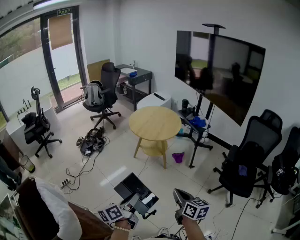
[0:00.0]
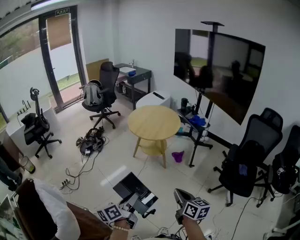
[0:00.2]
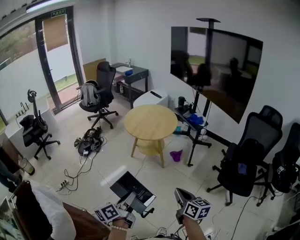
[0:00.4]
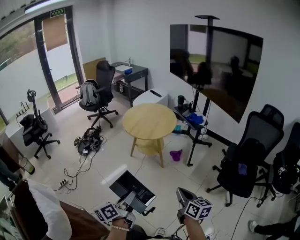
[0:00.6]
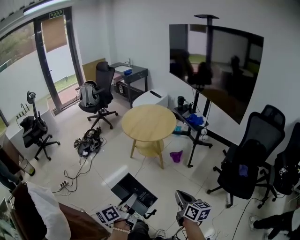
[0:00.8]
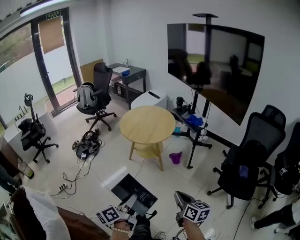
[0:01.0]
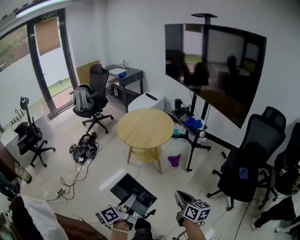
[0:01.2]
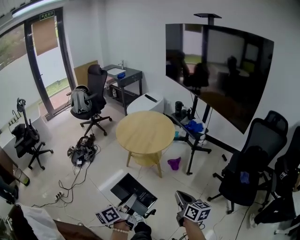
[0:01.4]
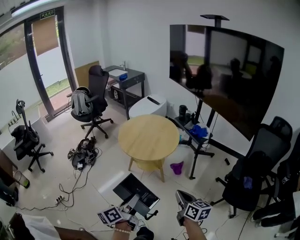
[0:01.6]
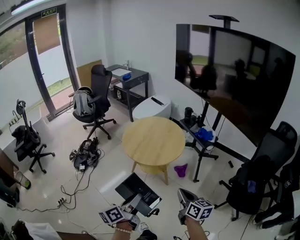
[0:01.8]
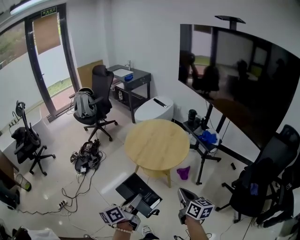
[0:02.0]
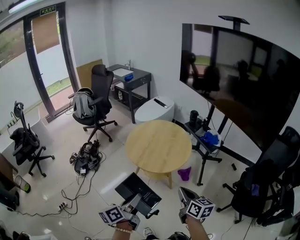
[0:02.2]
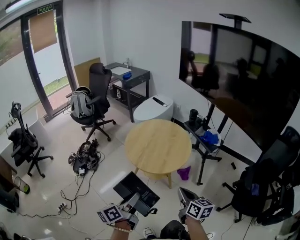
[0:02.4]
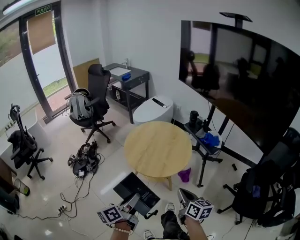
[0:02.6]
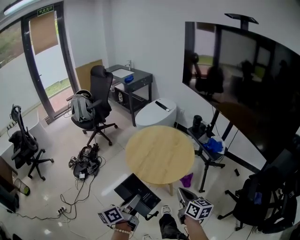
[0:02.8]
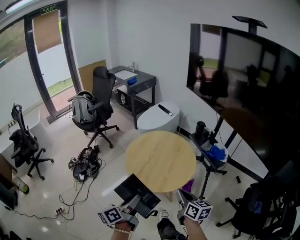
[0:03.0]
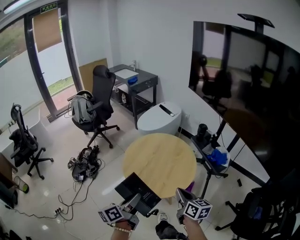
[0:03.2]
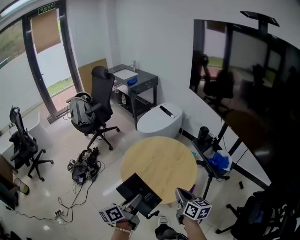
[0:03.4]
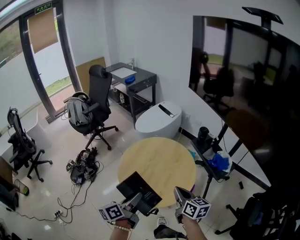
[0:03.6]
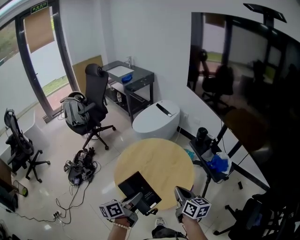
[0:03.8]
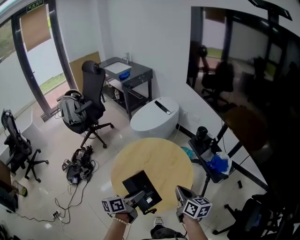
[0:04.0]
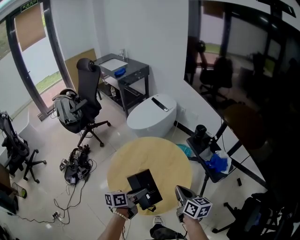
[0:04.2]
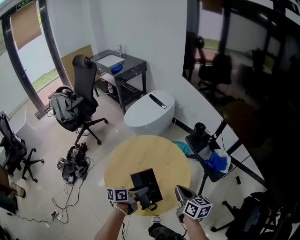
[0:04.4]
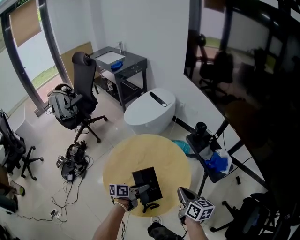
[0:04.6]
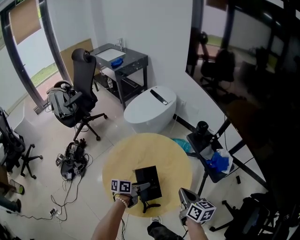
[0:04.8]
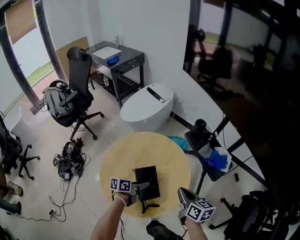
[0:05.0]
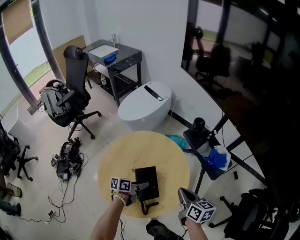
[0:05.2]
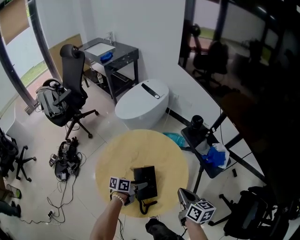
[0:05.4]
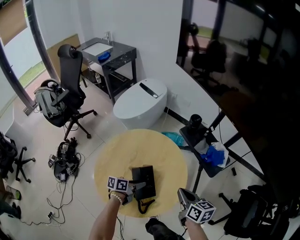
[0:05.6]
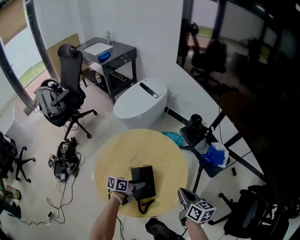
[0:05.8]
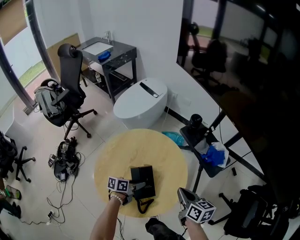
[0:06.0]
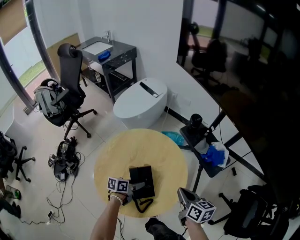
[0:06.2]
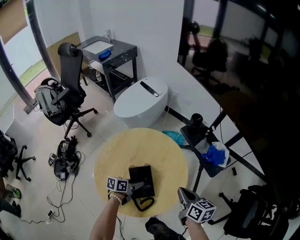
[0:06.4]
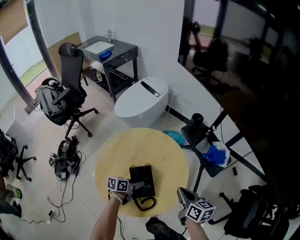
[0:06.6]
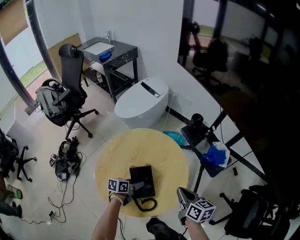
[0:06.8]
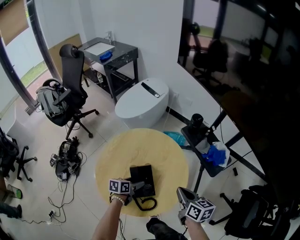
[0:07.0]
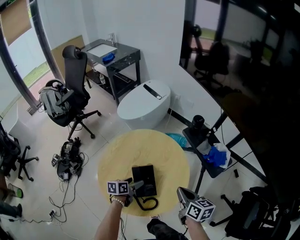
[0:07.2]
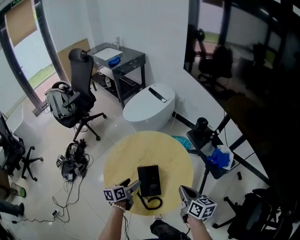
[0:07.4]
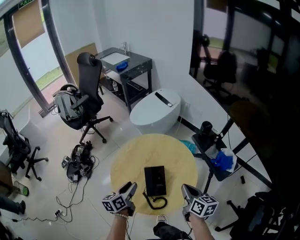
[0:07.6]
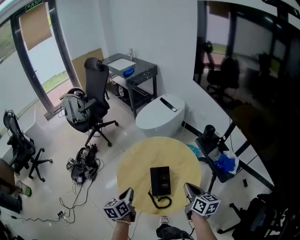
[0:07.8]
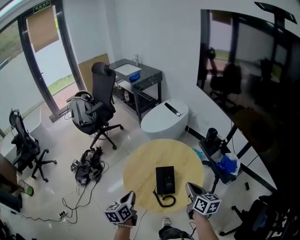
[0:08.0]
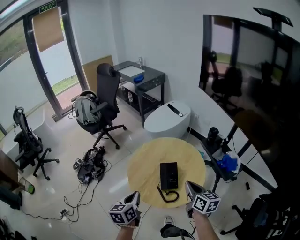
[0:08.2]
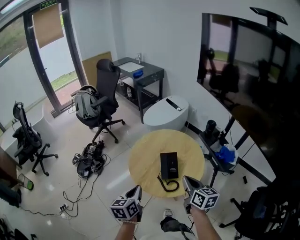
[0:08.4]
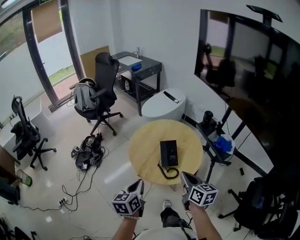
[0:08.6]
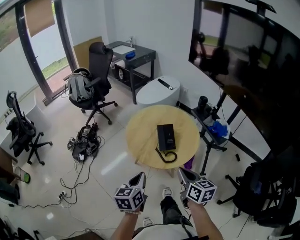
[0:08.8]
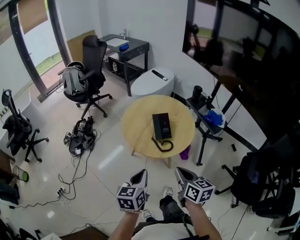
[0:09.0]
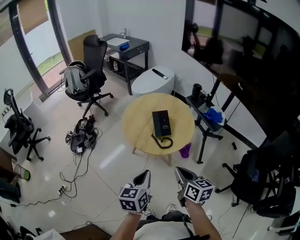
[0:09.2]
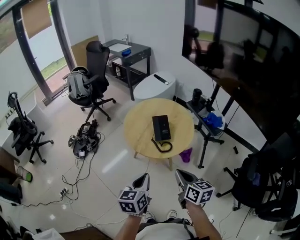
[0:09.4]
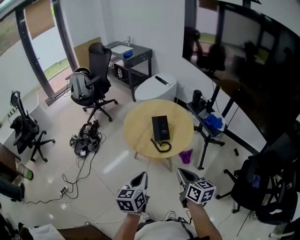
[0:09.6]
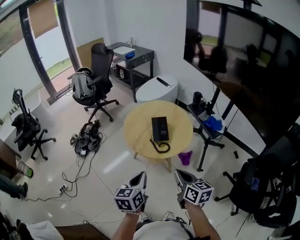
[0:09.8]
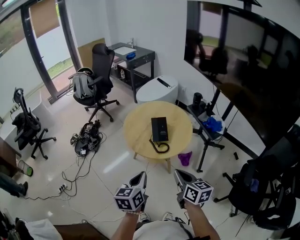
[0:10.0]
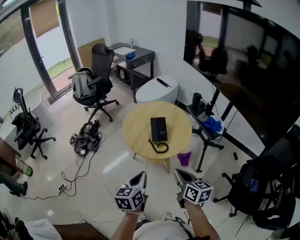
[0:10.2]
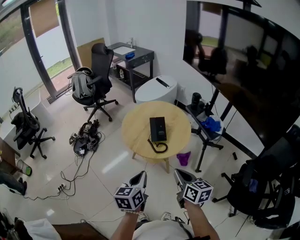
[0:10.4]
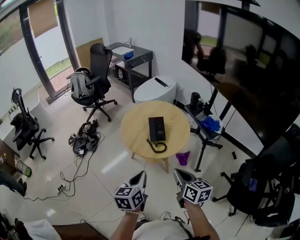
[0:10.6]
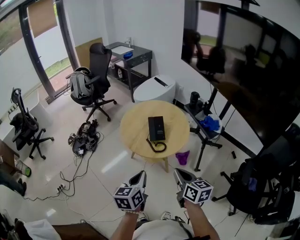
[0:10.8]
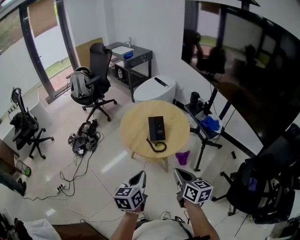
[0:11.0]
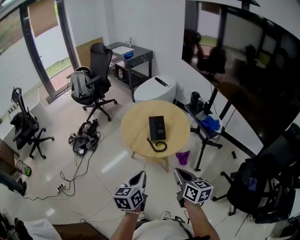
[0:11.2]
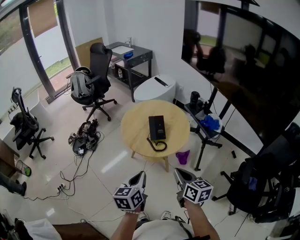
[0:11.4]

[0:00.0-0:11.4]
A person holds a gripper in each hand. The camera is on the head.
0:00.0 to 0:01.4: The left gripper shifts approximately 15 cm forward. The right gripper shifts approximately 20 cm forward and to the right.
0:01.4 to 0:02.8: Both grippers move forward, some 25 cm.
0:02.8 to 0:04.2: The two grippers go about 25 cm forward. The left gripper turns by approximately 20 degrees.
0:04.2 to 0:05.6: The right gripper changes place by some 5 cm. The left gripper travels downward and forward by some 15 cm, and swivels some 20 degrees.
0:05.6 to 0:07.2: The left gripper travels to the left by some 5 cm, and opens.
0:07.2 to 0:08.6: The left gripper goes about 35 cm backward, upward and to the left, swivels some 30 degrees, and closes. Meanwhile the right gripper shifts some 20 cm backward, to the left and upward.
0:08.6 to 0:10.0: The left gripper is displaced backward and to the right by about 15 cm. Meanwhile the right gripper shifts about 15 cm backward.
0:10.0 to 0:11.4: The grippers make only small movements.

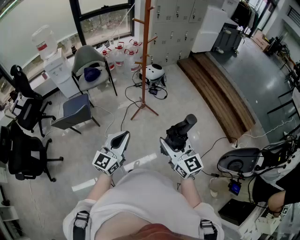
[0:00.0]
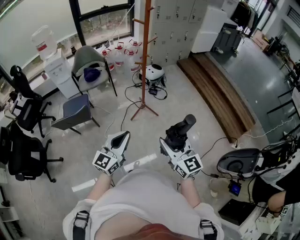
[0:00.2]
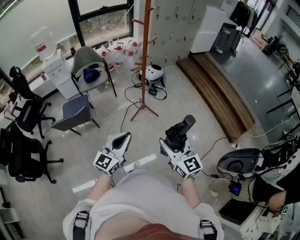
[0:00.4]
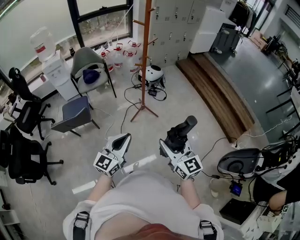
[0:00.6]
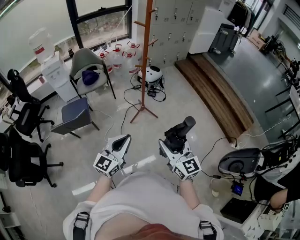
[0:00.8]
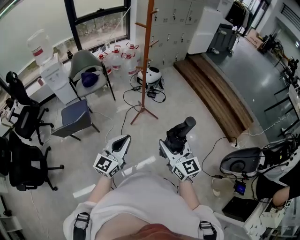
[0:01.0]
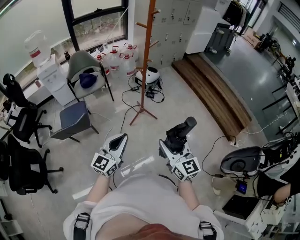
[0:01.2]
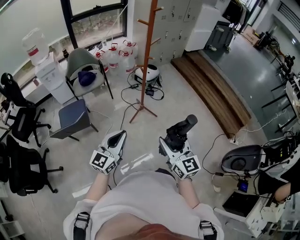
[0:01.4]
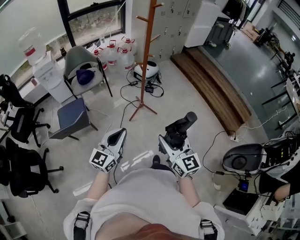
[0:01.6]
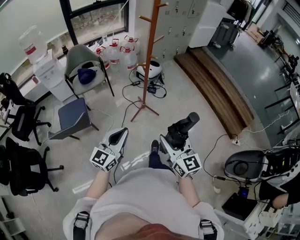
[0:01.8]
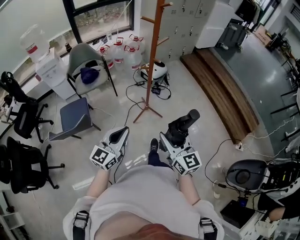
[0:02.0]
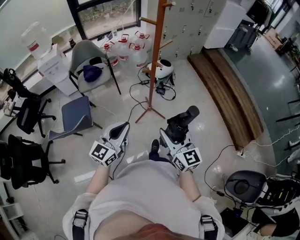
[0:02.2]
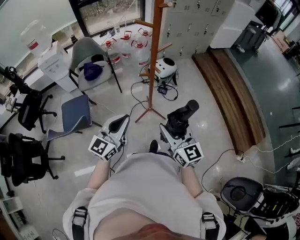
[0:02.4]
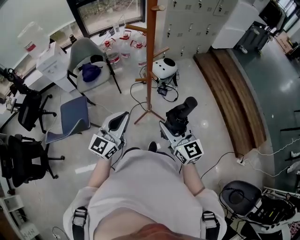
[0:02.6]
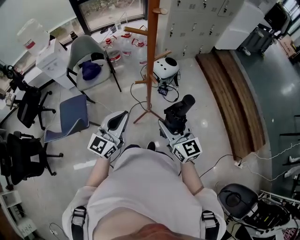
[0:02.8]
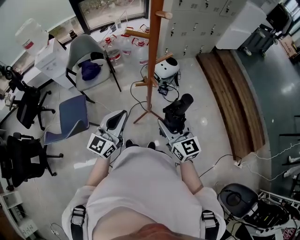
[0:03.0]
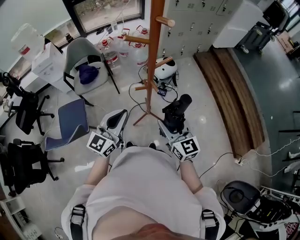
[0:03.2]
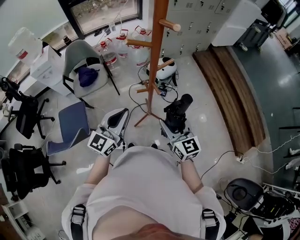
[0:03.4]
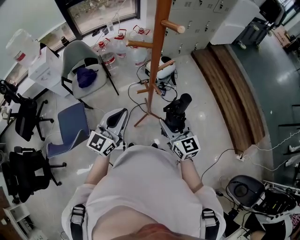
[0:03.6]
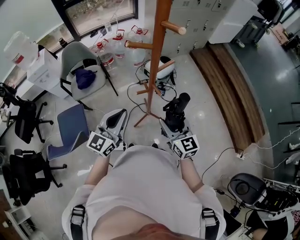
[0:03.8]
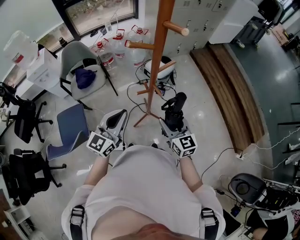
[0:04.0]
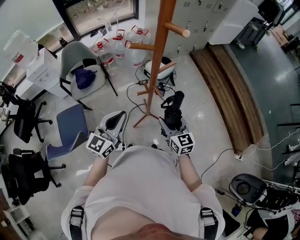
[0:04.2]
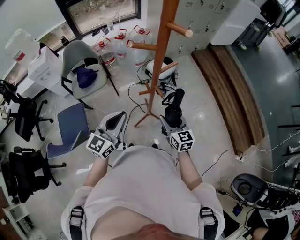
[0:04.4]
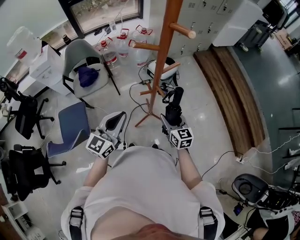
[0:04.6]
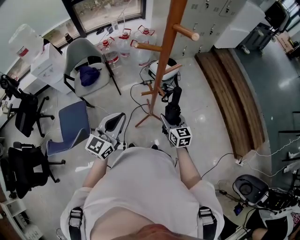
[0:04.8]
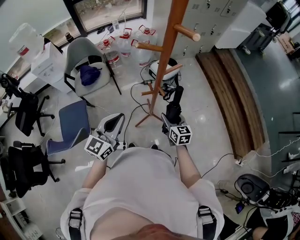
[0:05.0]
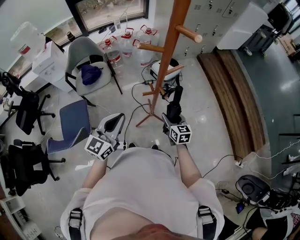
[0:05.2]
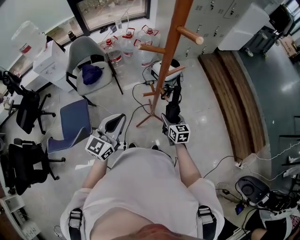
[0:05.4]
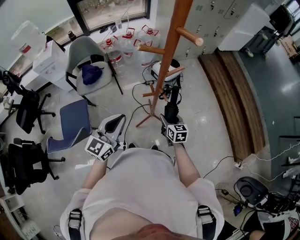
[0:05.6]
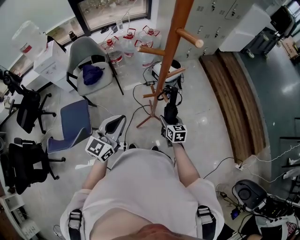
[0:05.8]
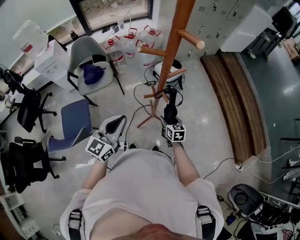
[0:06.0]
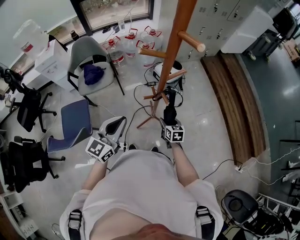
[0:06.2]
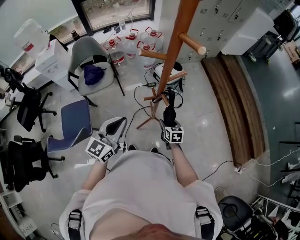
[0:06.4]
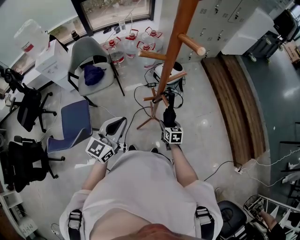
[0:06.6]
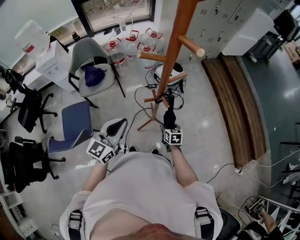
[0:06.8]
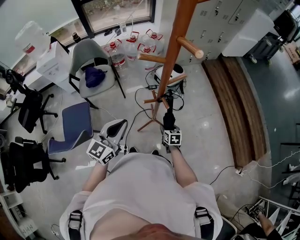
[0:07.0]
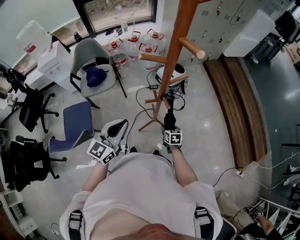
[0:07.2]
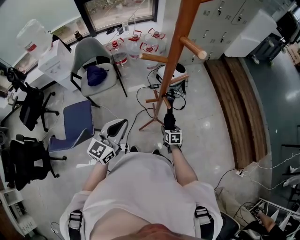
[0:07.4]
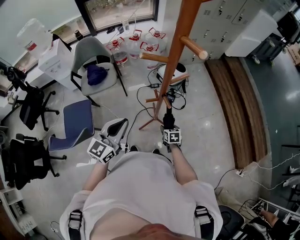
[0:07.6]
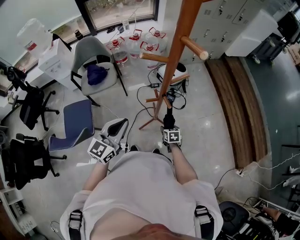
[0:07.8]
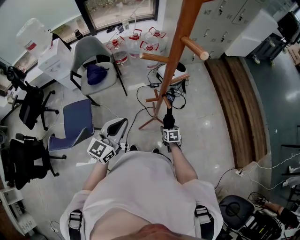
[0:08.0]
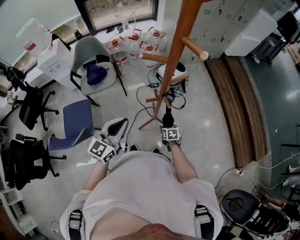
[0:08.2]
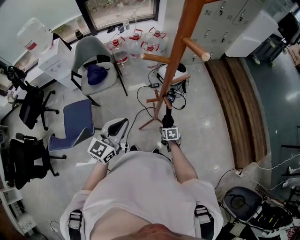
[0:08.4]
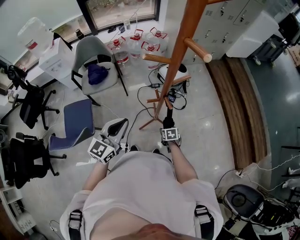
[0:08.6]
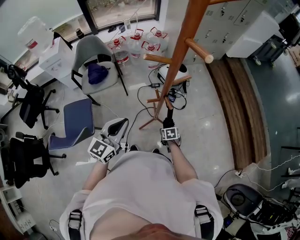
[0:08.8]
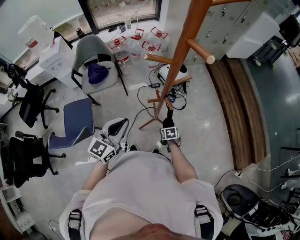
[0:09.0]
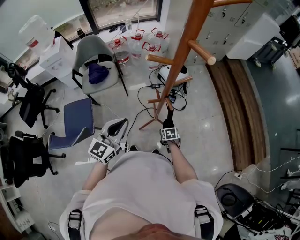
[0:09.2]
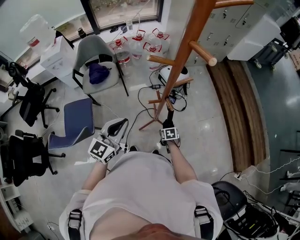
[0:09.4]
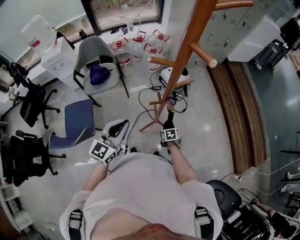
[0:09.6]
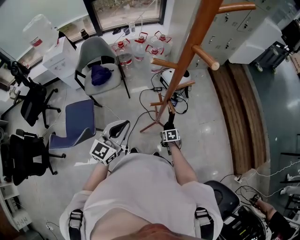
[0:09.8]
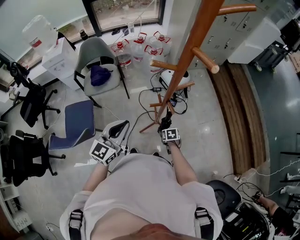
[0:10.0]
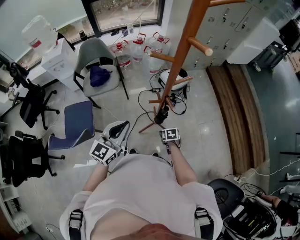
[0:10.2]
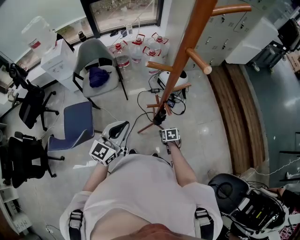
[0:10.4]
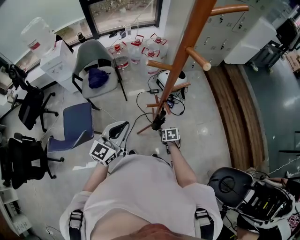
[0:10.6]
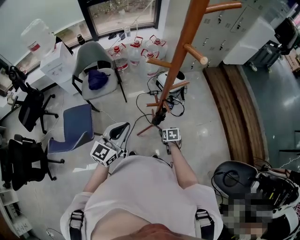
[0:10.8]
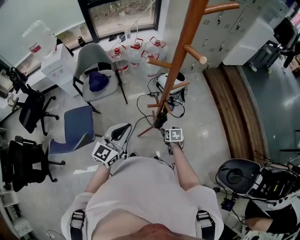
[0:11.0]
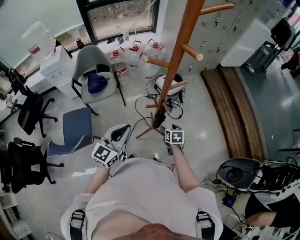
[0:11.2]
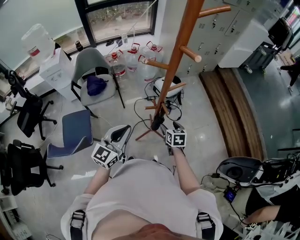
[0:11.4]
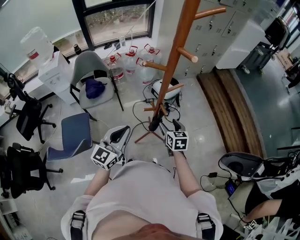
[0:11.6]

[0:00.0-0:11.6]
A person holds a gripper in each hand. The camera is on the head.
0:00.0 to 0:01.4: The left gripper shifts roughly 10 cm to the left and forward, while the right gripper shifts approximately 10 cm to the left.
0:01.4 to 0:02.8: The two grippers go some 35 cm forward.
0:02.8 to 0:04.4: The right gripper moves downward and forward, roughly 15 cm. The left gripper travels forward and to the left by some 10 cm.
0:04.4 to 0:05.8: The right gripper is displaced downward by about 10 cm.
0:05.8 to 0:07.2: The right gripper moves downward, some 10 cm.
0:07.2 to 0:08.8: The right gripper heads downward, covering approximately 5 cm.
0:08.8 to 0:10.2: Neither gripper changes place.
0:10.2 to 0:11.6: The right gripper moves upward, about 25 cm, and angles its fingers upward, by roughly 30 degrees.

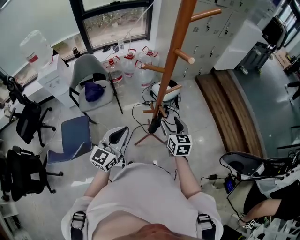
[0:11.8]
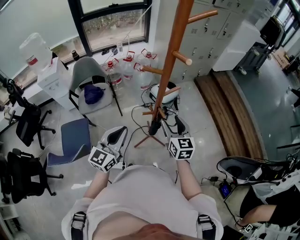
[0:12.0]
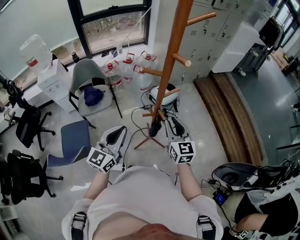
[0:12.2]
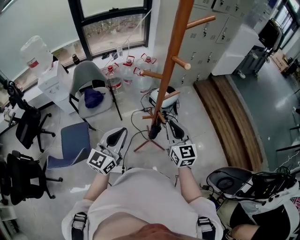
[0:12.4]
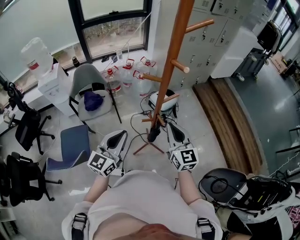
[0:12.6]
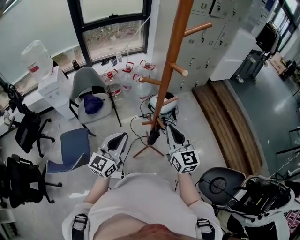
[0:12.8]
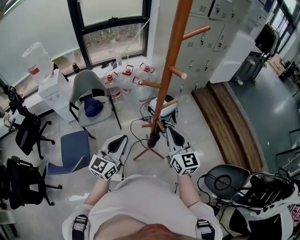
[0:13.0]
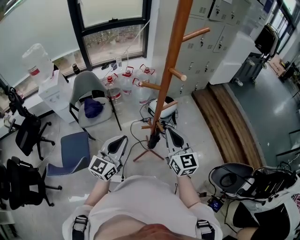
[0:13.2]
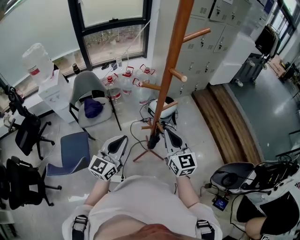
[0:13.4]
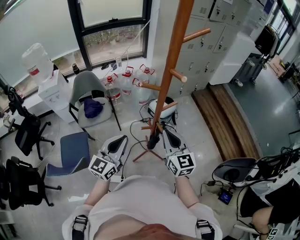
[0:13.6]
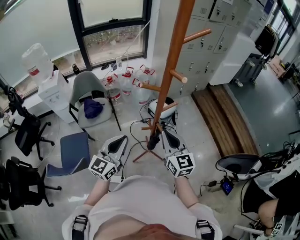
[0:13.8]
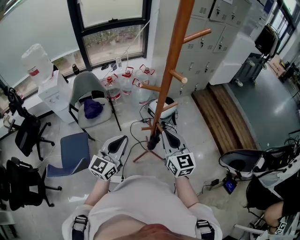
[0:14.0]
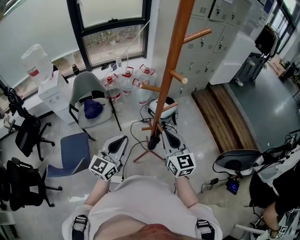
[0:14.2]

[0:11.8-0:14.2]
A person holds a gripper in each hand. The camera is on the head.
0:11.8 to 0:13.0: The right gripper heads upward, covering roughly 15 cm, swivels approximately 20 degrees, and closes its fingers.
0:13.0 to 0:14.2: The grippers stay close to where they were, moving slightly.
